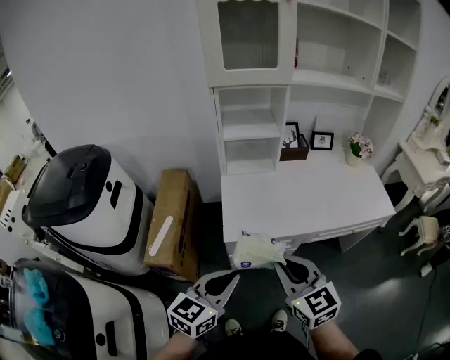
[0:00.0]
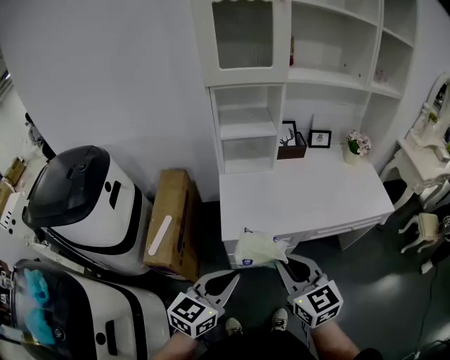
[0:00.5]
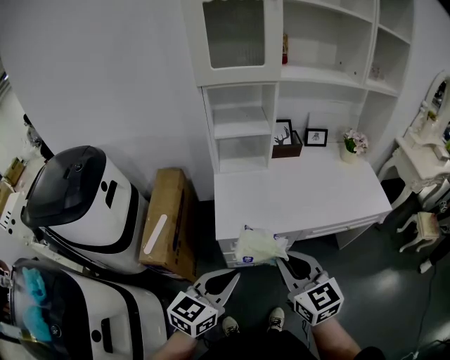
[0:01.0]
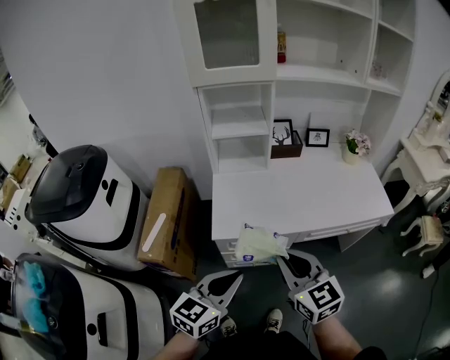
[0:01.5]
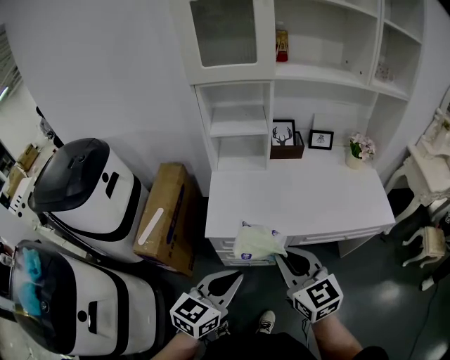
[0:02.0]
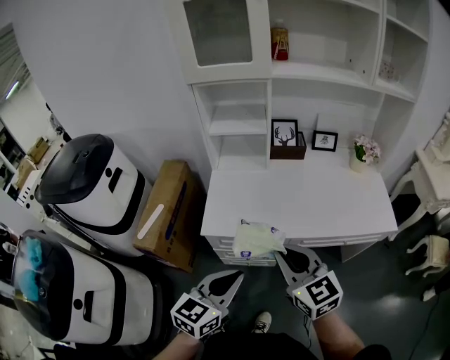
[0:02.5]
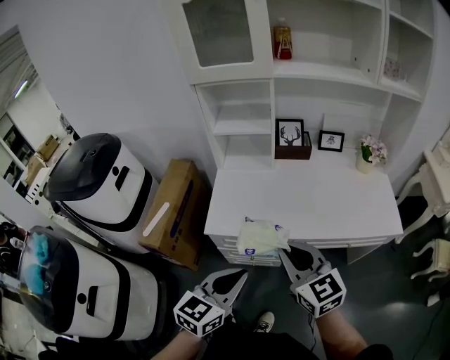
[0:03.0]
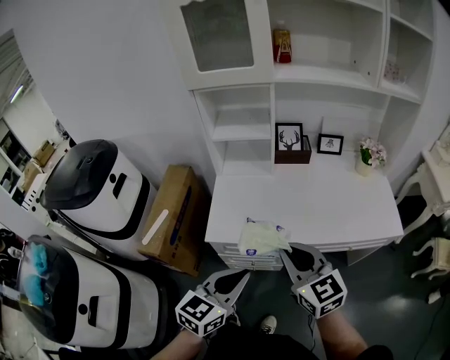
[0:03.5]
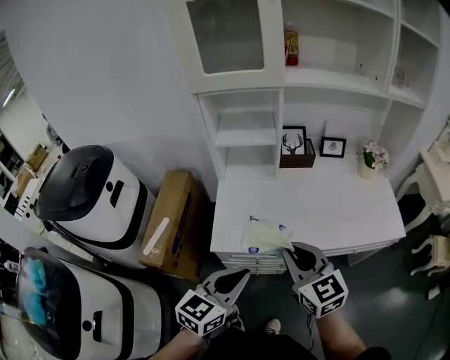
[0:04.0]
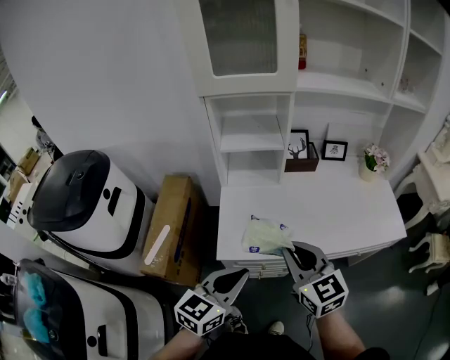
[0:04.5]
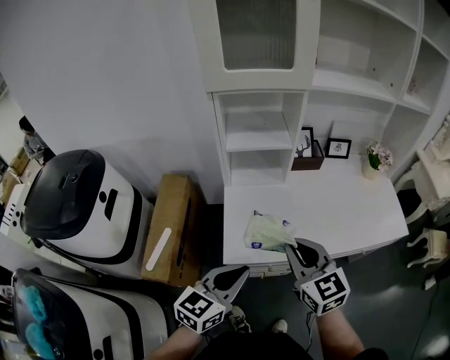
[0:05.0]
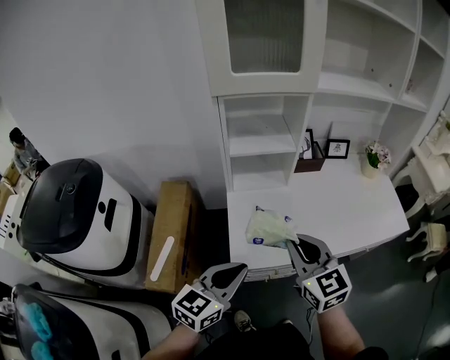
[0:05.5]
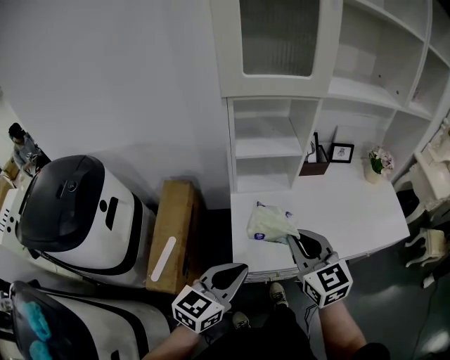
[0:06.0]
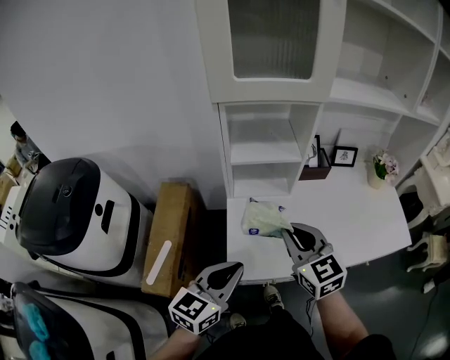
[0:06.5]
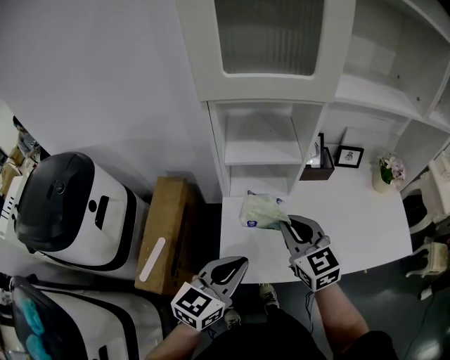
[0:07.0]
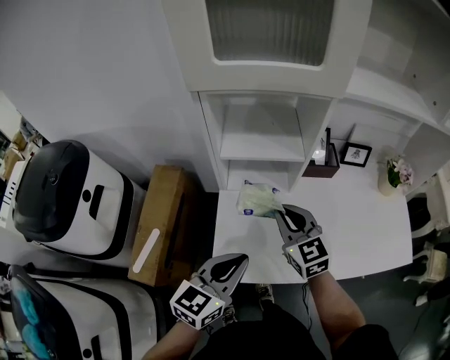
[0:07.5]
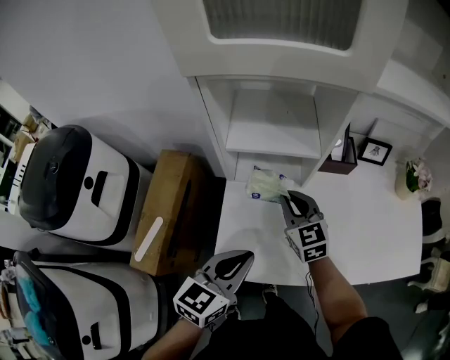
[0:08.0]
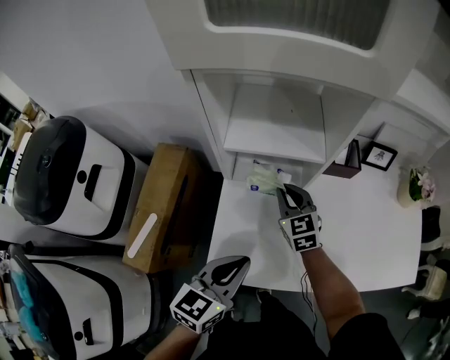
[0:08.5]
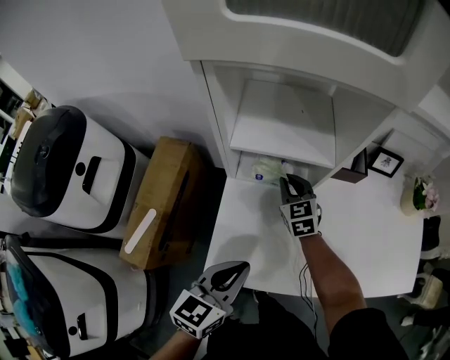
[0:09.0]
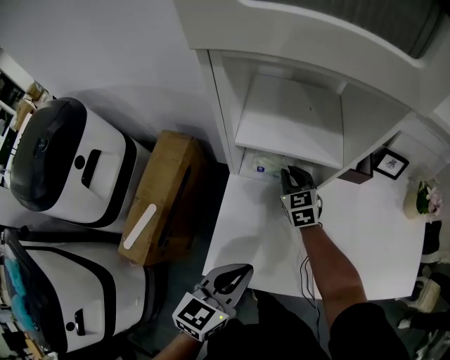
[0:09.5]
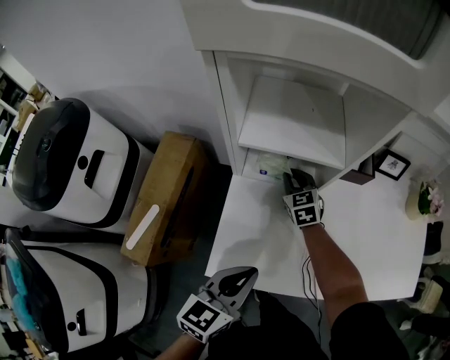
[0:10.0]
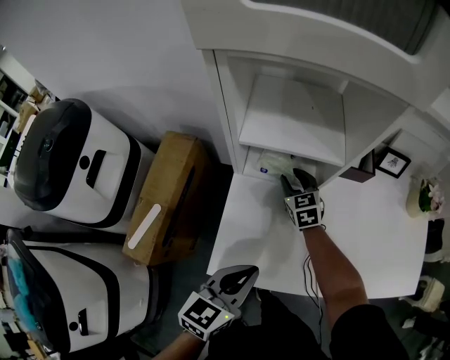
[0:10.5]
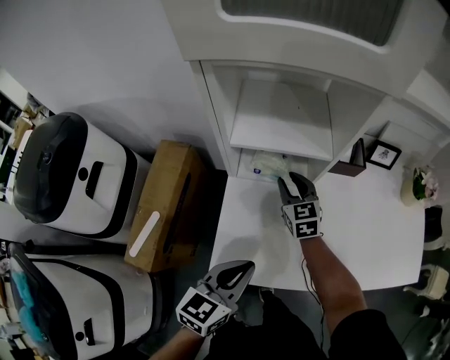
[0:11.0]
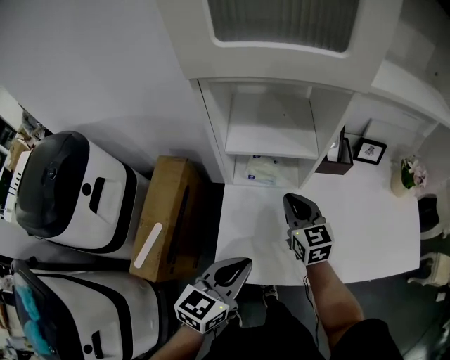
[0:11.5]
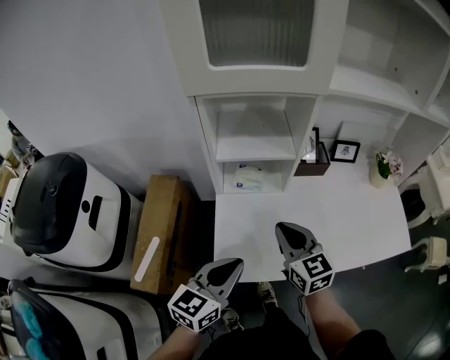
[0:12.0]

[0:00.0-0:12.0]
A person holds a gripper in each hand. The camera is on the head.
0:00.0 to 0:02.0: The grippers both shift to the right by roughly 10 cm.
0:02.0 to 0:04.0: The two grippers go about 10 cm forward.
0:04.0 to 0:06.0: The two grippers go roughly 15 cm to the left and forward.
0:06.0 to 0:08.0: The right gripper is displaced forward and downward by about 30 cm; the left gripper is displaced forward and to the right by about 15 cm.
0:08.0 to 0:10.0: The right gripper moves downward and forward, about 15 cm.
0:10.0 to 0:12.0: The left gripper is displaced upward by about 5 cm. Meanwhile the right gripper heads backward and upward, covering some 30 cm, turns by roughly 20 degrees, and opens, then closes once more.

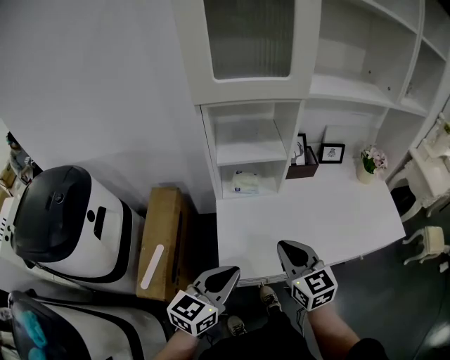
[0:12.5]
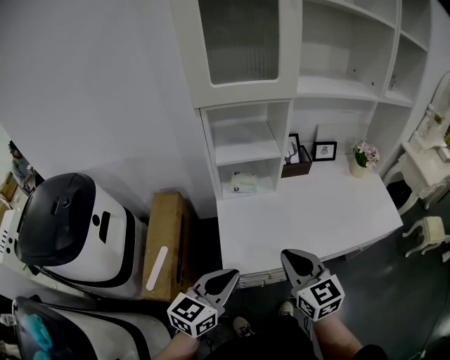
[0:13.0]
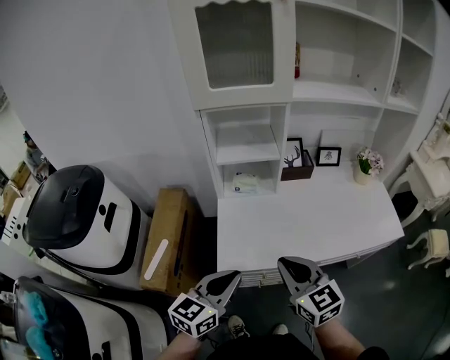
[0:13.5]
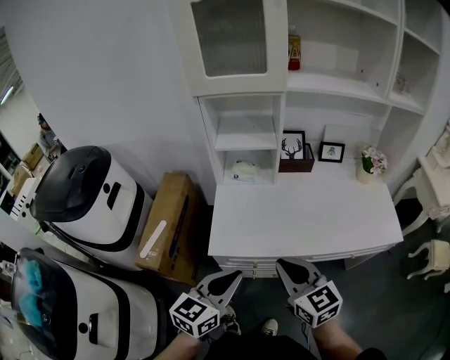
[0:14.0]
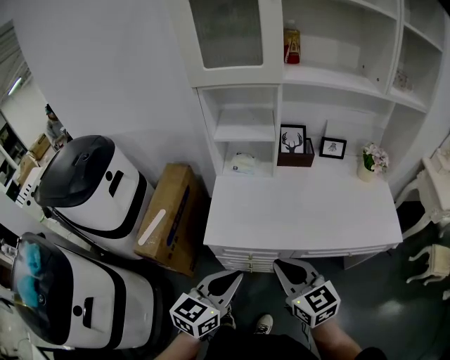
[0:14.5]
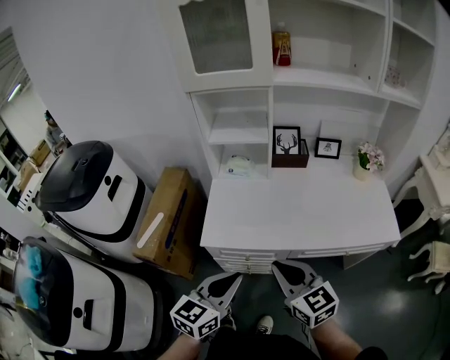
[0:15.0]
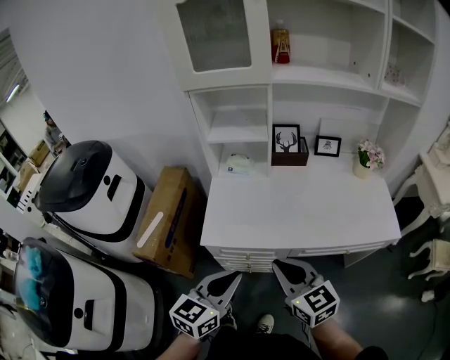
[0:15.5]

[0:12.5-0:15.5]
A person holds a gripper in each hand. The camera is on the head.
0:12.5 to 0:14.0: Both grippers move backward and to the right, about 15 cm.
0:14.0 to 0:15.5: The right gripper ends up roughly 5 cm from where it was. Meanwhile the left gripper changes place by roughly 5 cm.

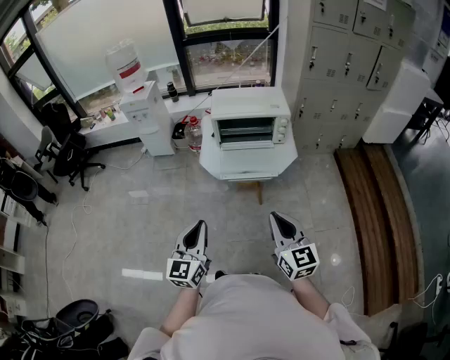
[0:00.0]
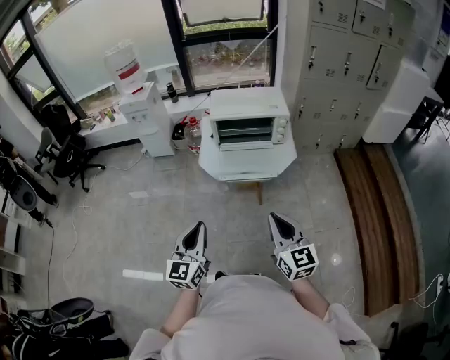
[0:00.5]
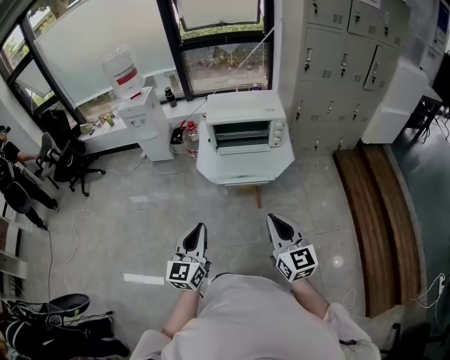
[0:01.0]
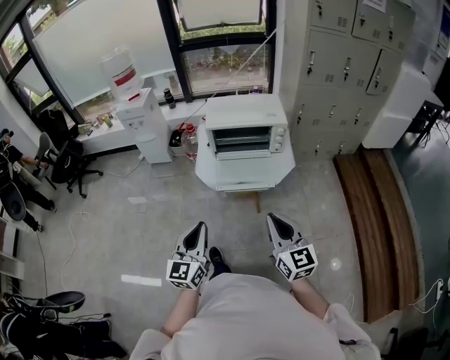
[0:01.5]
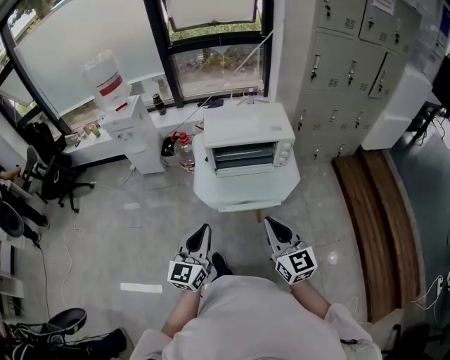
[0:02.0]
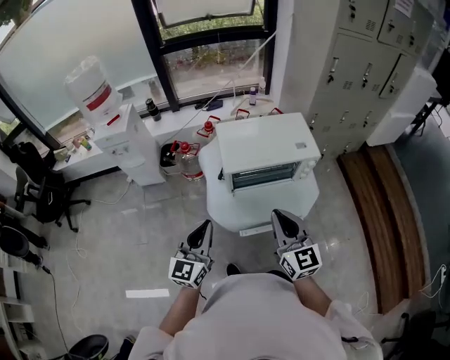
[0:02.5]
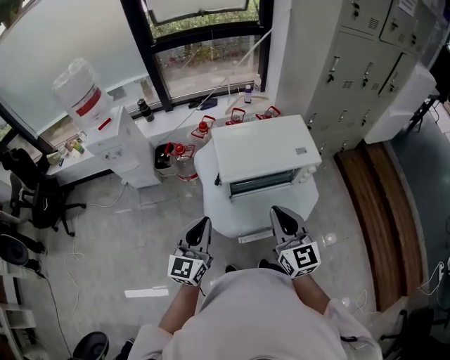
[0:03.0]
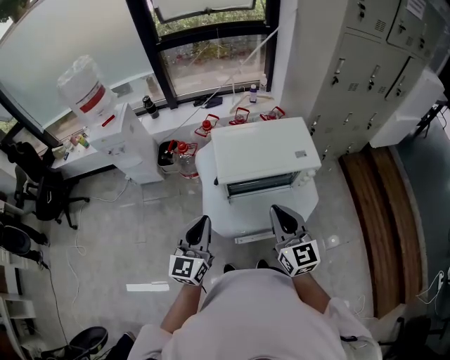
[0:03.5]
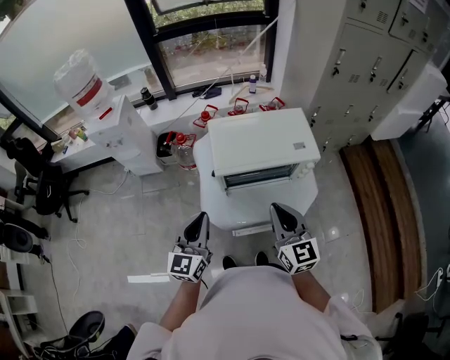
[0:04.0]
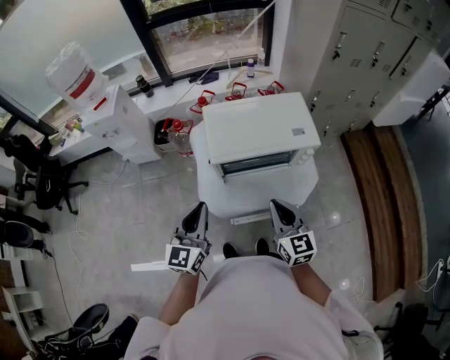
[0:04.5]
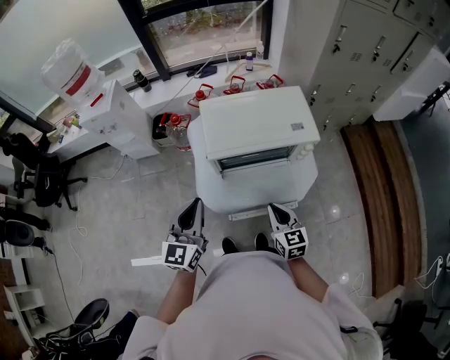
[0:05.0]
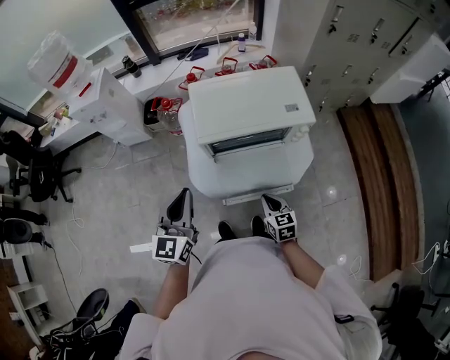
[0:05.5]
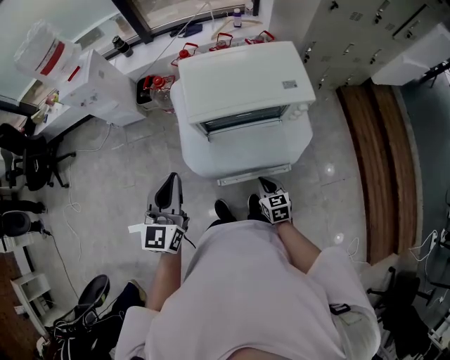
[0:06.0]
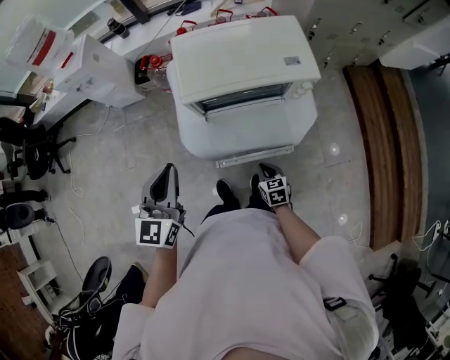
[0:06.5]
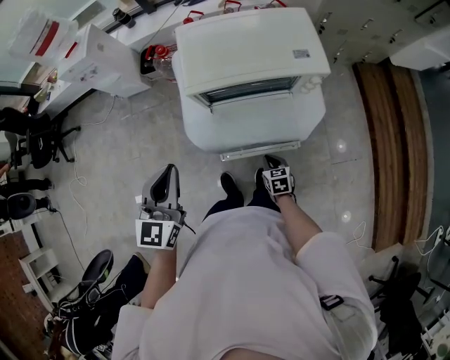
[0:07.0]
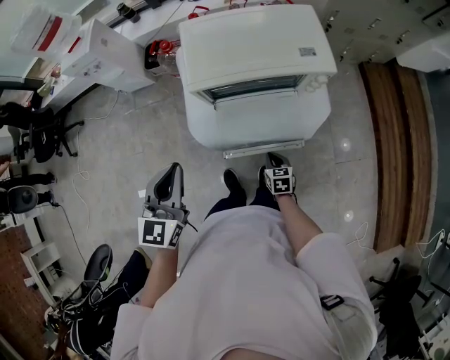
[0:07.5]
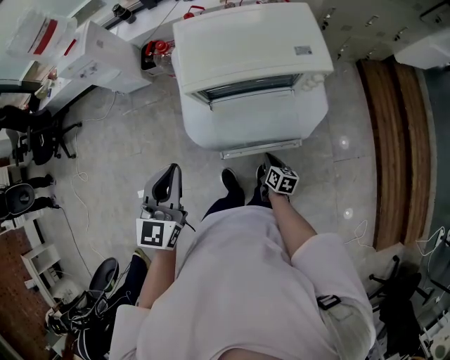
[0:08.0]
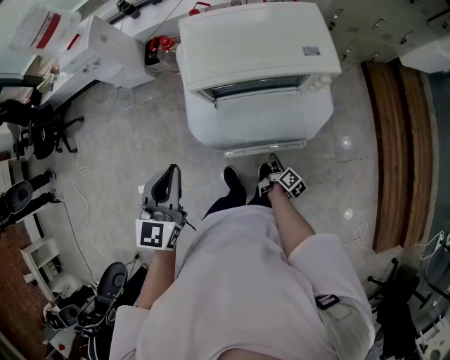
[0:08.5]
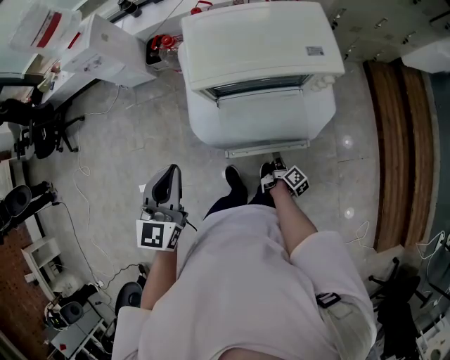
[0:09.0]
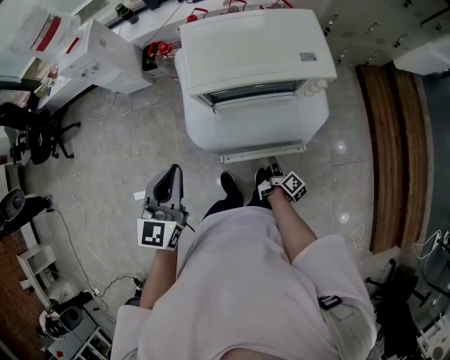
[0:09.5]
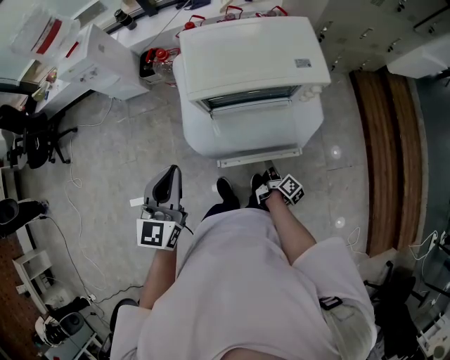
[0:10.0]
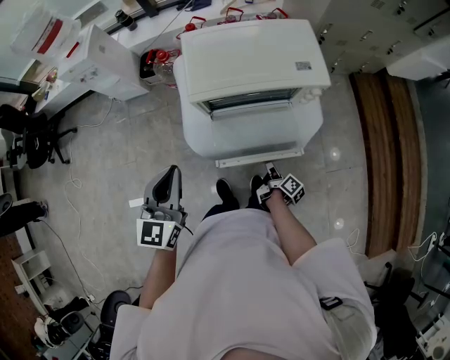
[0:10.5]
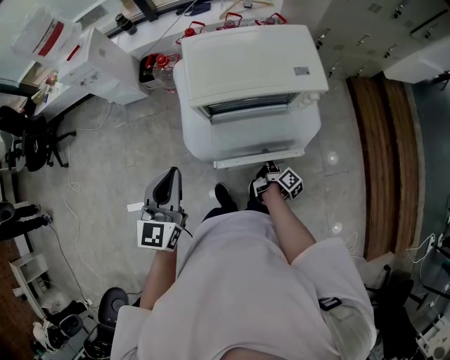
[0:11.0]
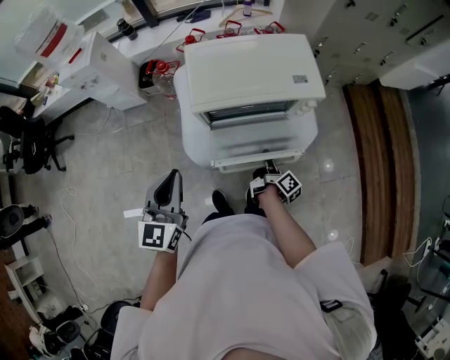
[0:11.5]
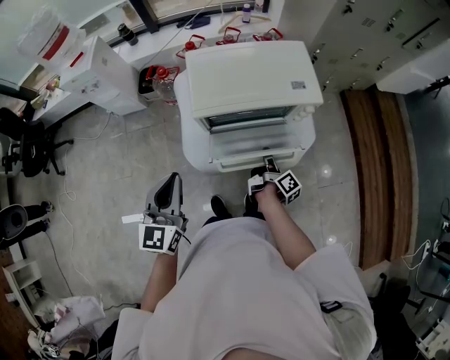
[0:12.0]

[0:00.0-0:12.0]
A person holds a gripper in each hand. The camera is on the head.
0:00.0 to 0:02.0: Both grippers move forward, about 15 cm.
0:02.0 to 0:04.0: The grippers both shift forward by about 20 cm.
0:04.0 to 0:06.0: The right gripper moves downward, some 30 cm, and angles its fingers downward, by roughly 30 degrees.
0:06.0 to 0:08.0: The right gripper travels downward by about 10 cm, and rotates roughly 40 degrees.
0:08.0 to 0:10.0: The right gripper turns by approximately 40 degrees.
0:10.0 to 0:12.0: The right gripper moves upward and forward, approximately 15 cm, and opens and closes again.
